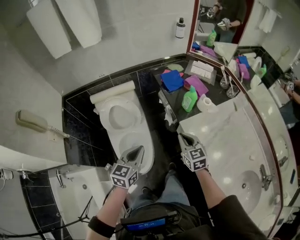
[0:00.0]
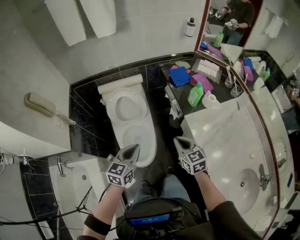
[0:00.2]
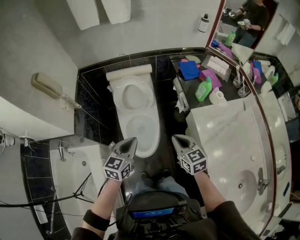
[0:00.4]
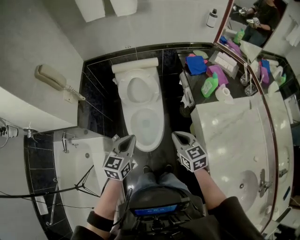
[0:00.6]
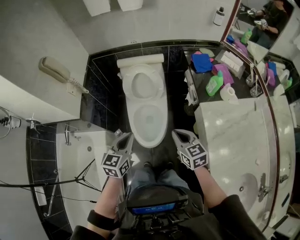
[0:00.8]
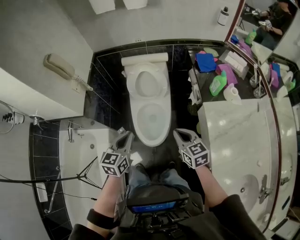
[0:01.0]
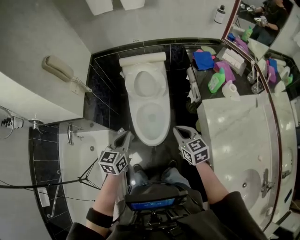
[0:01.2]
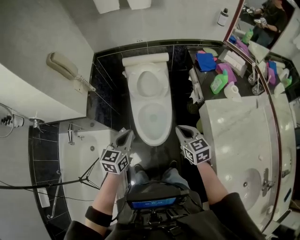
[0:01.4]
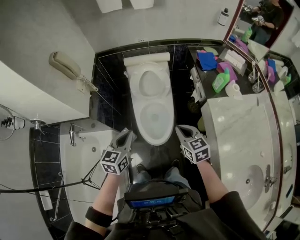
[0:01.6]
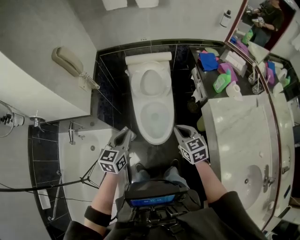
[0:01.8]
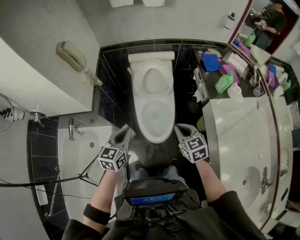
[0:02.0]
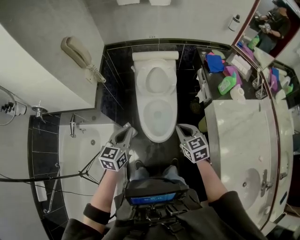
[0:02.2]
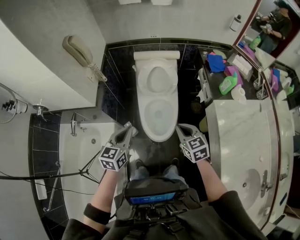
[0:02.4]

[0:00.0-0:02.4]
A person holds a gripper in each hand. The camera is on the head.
0:00.0 to 0:01.2: The right gripper moves some 20 cm, and swivels approximately 30 degrees. Meanwhile the left gripper changes place by roughly 20 cm, and turns by about 20 degrees.
0:01.2 to 0:02.4: Both grippers move to the left, roughly 10 cm.
